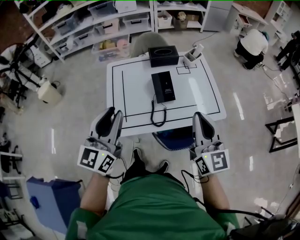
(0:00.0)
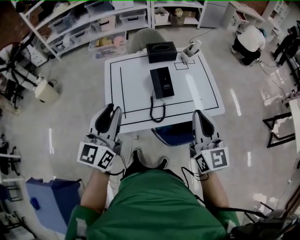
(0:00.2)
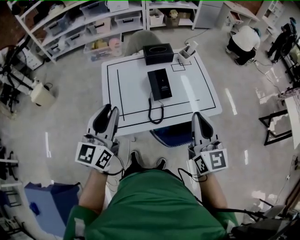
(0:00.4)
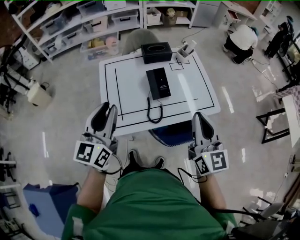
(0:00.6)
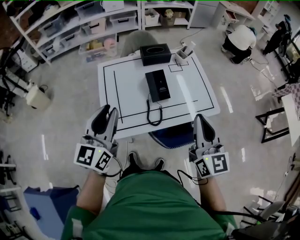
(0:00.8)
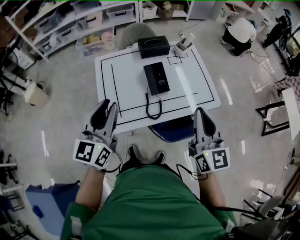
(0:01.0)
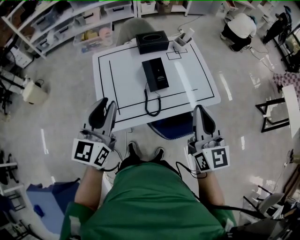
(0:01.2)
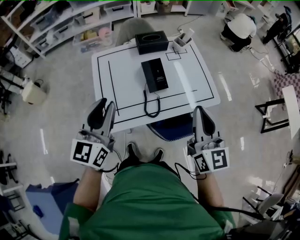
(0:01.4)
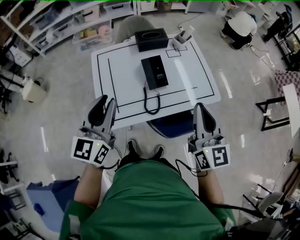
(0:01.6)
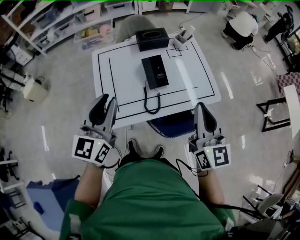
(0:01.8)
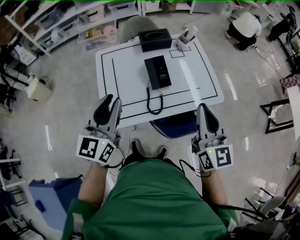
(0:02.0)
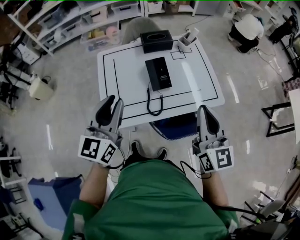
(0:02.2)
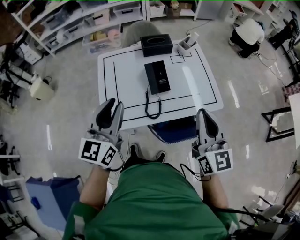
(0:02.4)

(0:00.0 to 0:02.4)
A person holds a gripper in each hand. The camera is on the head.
0:00.0 - 0:01.2: The left gripper shifts by approximately 5 cm.
0:01.2 - 0:02.4: The grippers stay close to where they were, moving slightly.

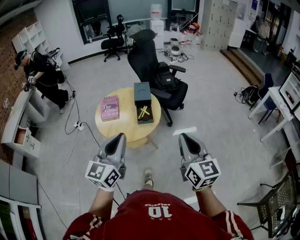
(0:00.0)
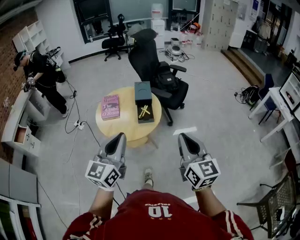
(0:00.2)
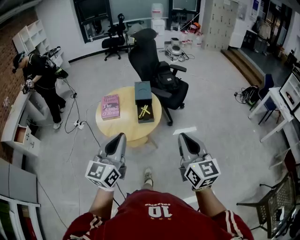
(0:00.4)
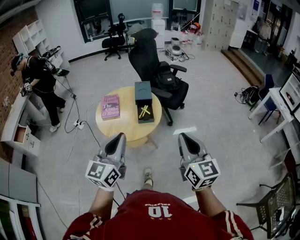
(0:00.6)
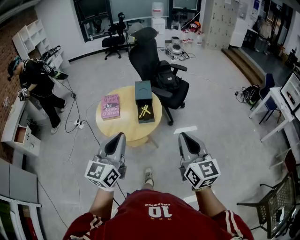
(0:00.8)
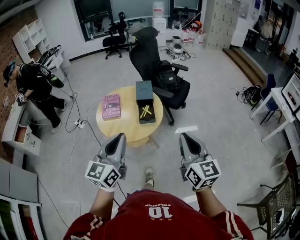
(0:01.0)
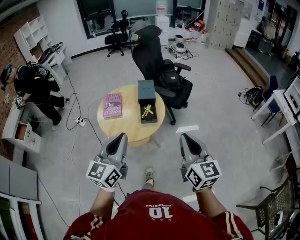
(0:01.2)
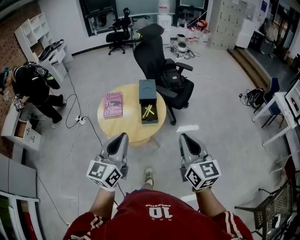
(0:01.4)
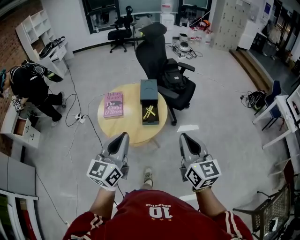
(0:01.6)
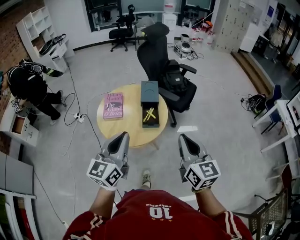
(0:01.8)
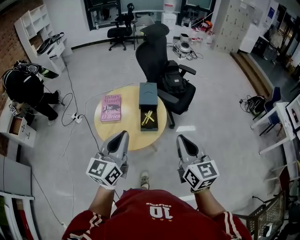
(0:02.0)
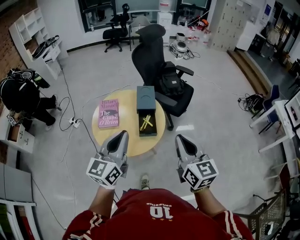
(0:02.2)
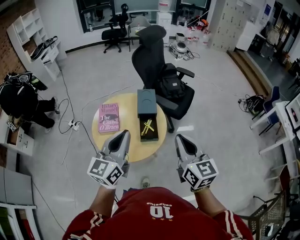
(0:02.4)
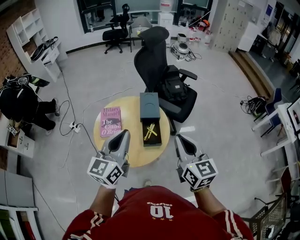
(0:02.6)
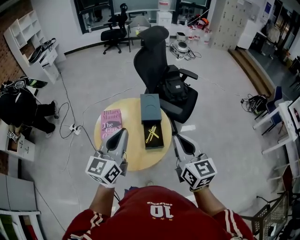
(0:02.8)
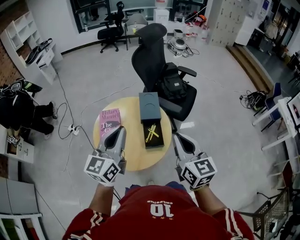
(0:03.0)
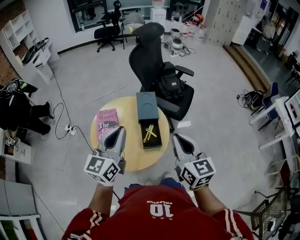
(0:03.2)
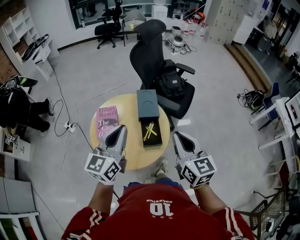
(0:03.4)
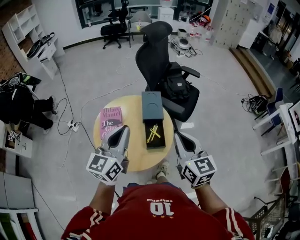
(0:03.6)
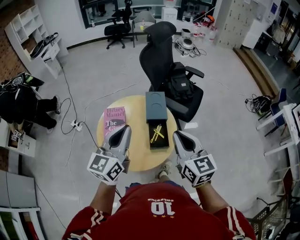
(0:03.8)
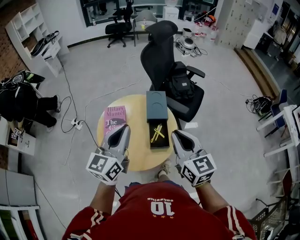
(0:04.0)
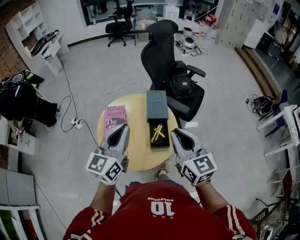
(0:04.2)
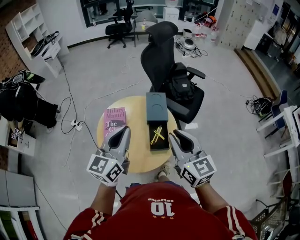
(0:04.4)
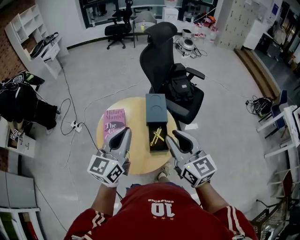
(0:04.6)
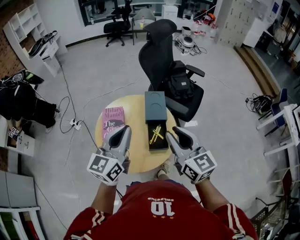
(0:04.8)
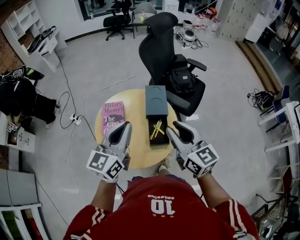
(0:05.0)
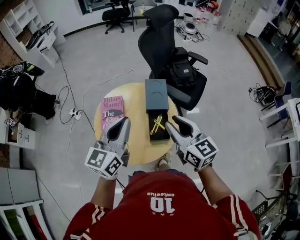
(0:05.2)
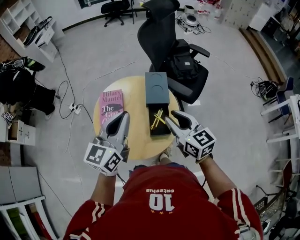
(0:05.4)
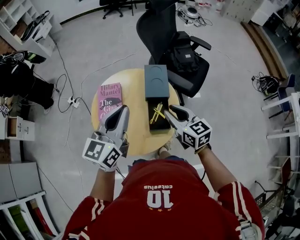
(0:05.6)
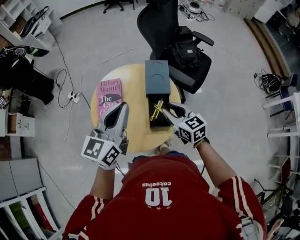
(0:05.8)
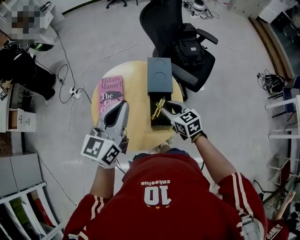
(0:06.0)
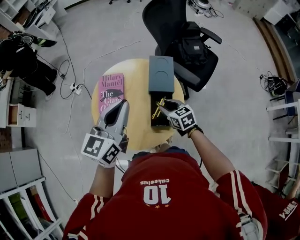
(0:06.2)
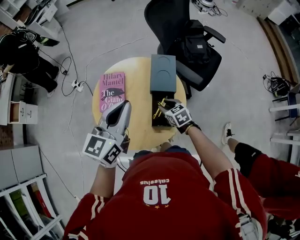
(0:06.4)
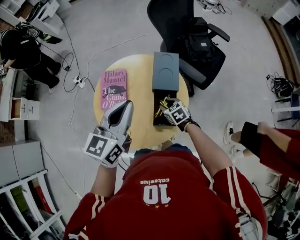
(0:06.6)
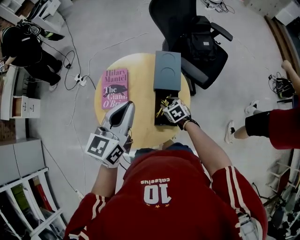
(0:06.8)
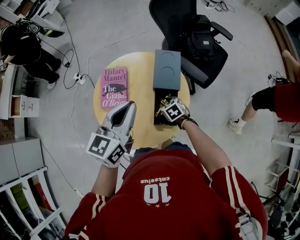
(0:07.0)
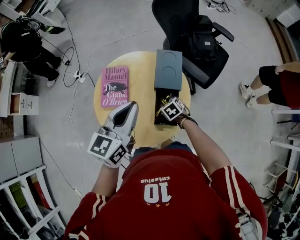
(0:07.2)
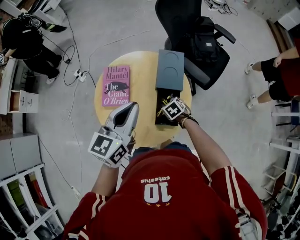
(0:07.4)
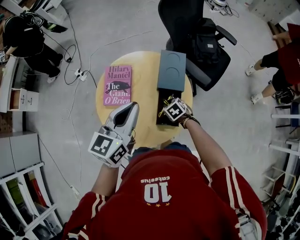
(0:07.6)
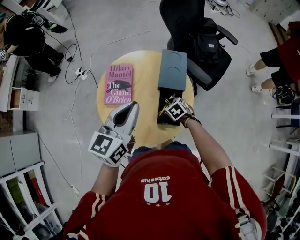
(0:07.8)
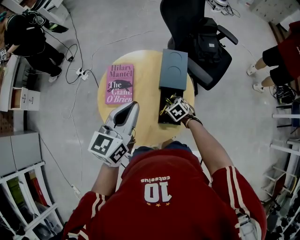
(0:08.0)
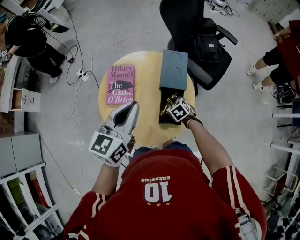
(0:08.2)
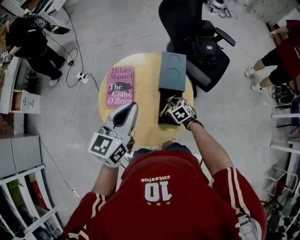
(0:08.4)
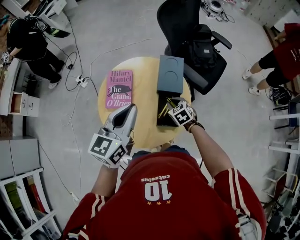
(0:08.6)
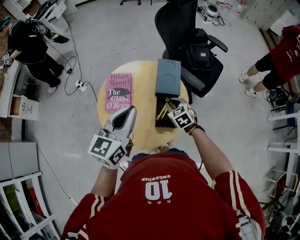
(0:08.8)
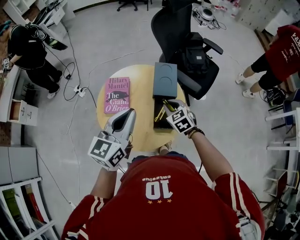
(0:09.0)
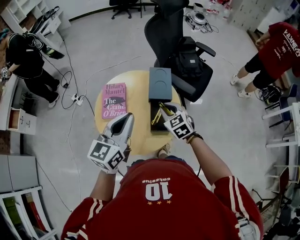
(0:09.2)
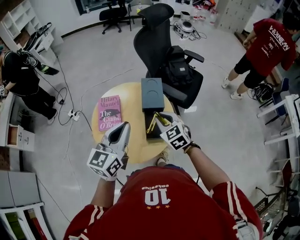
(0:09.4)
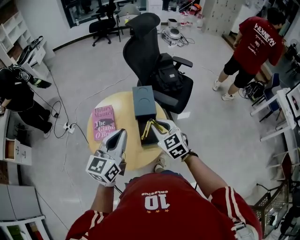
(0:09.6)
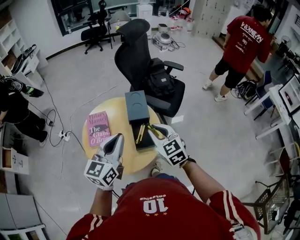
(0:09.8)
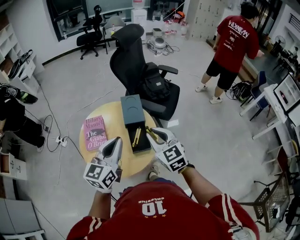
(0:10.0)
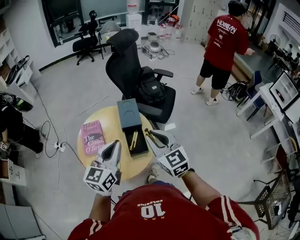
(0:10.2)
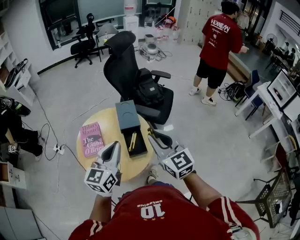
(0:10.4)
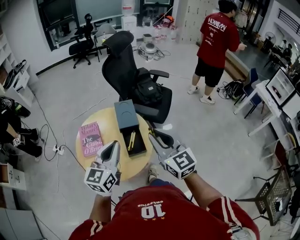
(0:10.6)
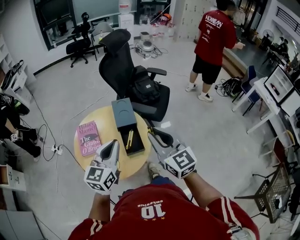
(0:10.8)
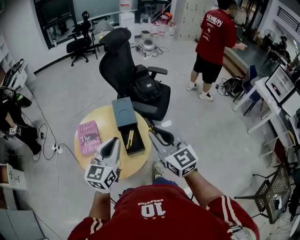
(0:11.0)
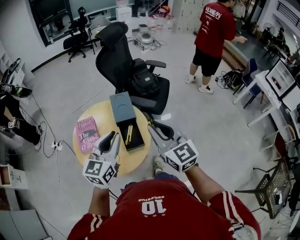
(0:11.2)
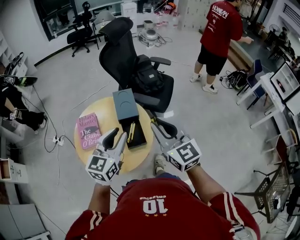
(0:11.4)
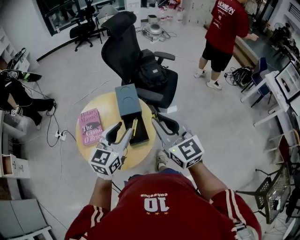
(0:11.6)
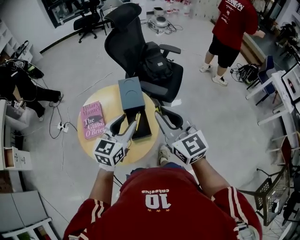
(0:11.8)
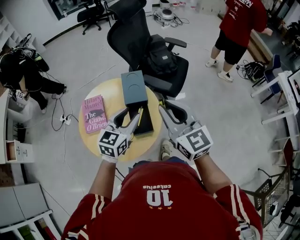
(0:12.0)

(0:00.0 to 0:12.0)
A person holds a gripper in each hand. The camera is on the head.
0:00.0 - 0:01.6: The two grippers go approximately 5 cm forward.
0:01.6 - 0:03.0: The two grippers go approximately 20 cm forward.
0:03.0 - 0:04.4: The right gripper moves some 5 cm.
0:04.4 - 0:06.0: The left gripper travels forward by some 5 cm. The right gripper heads downward and forward, covering approximately 25 cm, and turns by about 30 degrees.
0:06.0 - 0:07.6: The right gripper shifts approximately 20 cm downward, and angles its fingers downward, by roughly 30 degrees, while the left gripper heads downward, covering approximately 5 cm.
0:07.6 - 0:09.0: The left gripper moves approximately 5 cm. Meanwhile the right gripper moves upward, about 15 cm, and changes its angle by approximately 30 degrees.
0:09.0 - 0:10.4: The right gripper travels upward and backward by some 30 cm, and tips its fingers upward by roughly 40 degrees, while the left gripper travels to the right by roughly 5 cm.
0:10.4 - 0:12.0: The left gripper is displaced forward, downward and to the right by about 15 cm, and opens. The right gripper is displaced forward by approximately 5 cm.

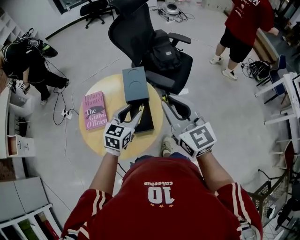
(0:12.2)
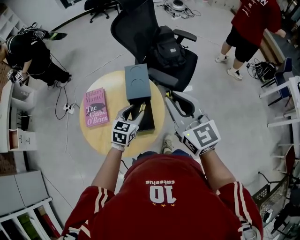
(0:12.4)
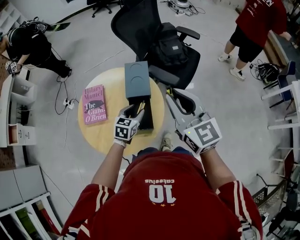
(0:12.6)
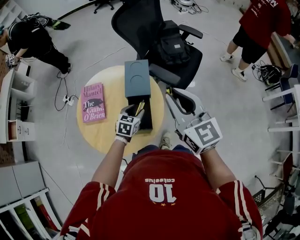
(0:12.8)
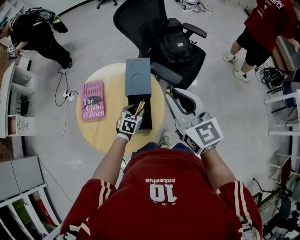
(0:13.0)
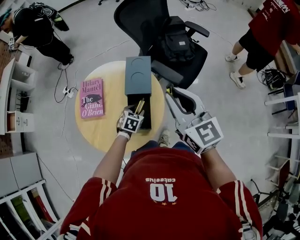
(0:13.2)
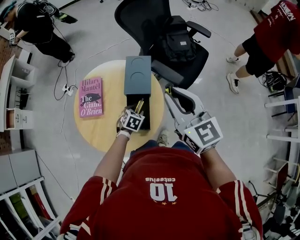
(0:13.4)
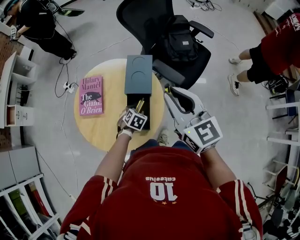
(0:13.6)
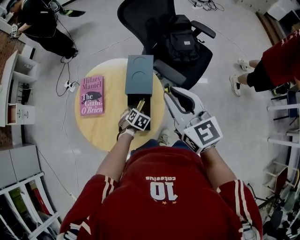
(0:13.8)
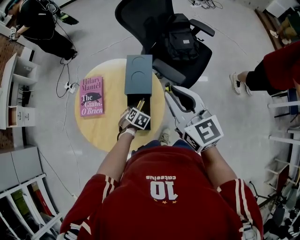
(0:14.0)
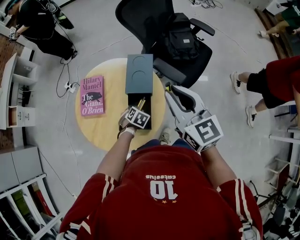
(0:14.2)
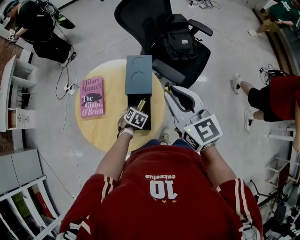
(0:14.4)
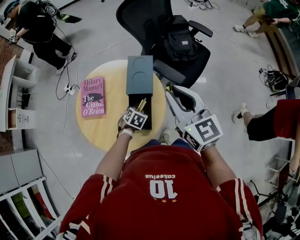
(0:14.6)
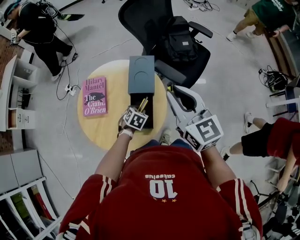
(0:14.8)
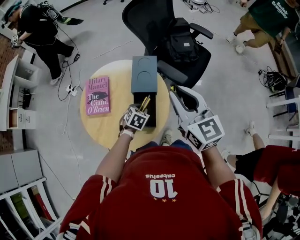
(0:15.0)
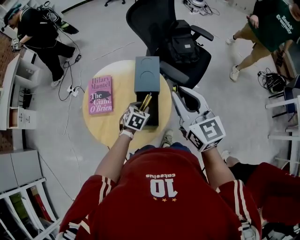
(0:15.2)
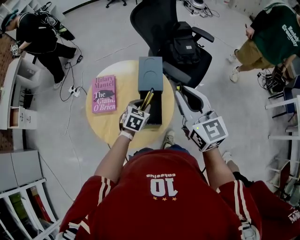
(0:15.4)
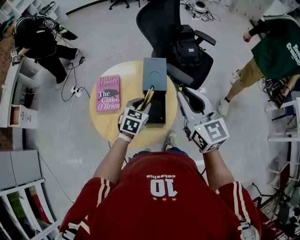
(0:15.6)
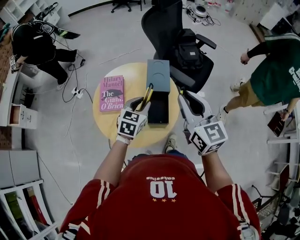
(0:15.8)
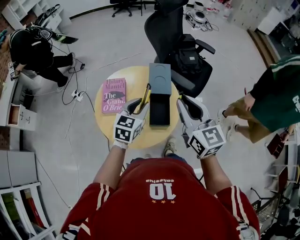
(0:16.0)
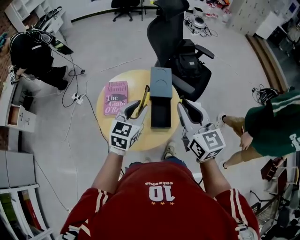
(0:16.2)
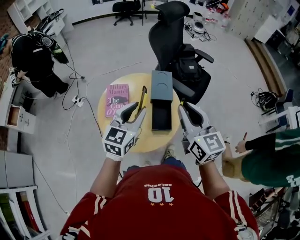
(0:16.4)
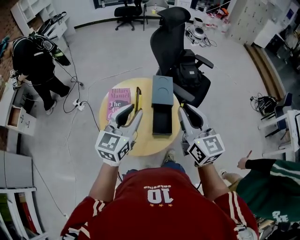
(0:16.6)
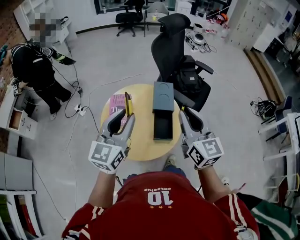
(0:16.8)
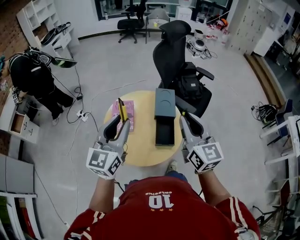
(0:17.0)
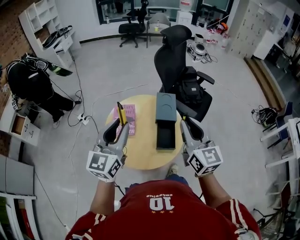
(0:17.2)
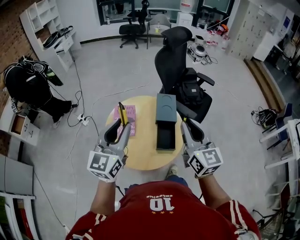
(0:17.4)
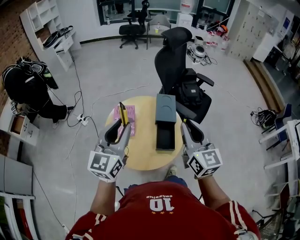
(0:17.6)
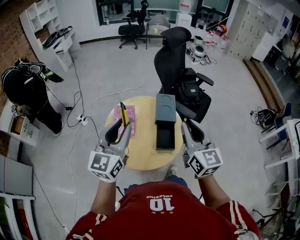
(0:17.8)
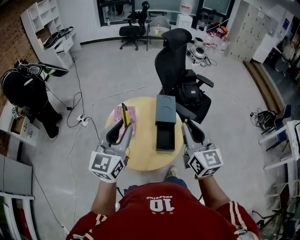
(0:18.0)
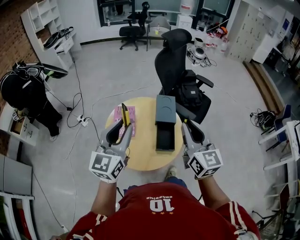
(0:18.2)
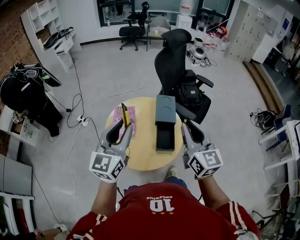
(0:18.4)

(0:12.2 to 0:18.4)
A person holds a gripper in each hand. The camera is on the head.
0:12.2 - 0:13.8: The right gripper moves forward and downward, about 10 cm. The left gripper shifts some 30 cm downward, and points its fingers about 50 degrees further downward.
0:13.8 - 0:15.4: The left gripper goes approximately 15 cm upward, and swivels approximately 30 degrees, while the right gripper changes place by roughly 5 cm.
0:15.4 - 0:16.8: The left gripper goes some 35 cm upward and to the left, and angles its fingers upward, by about 50 degrees; the right gripper shifts approximately 15 cm backward, to the left and upward.
0:16.8 - 0:18.4: The grippers make only small movements.

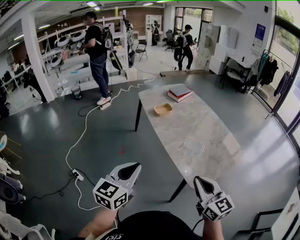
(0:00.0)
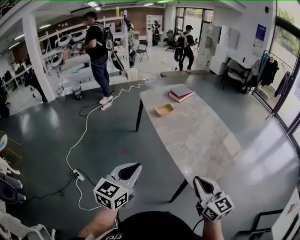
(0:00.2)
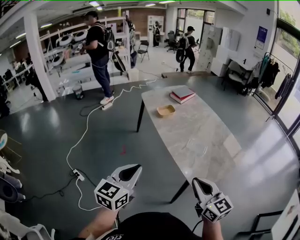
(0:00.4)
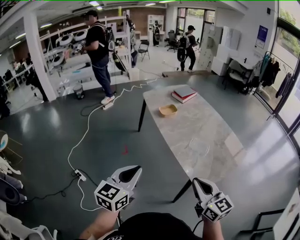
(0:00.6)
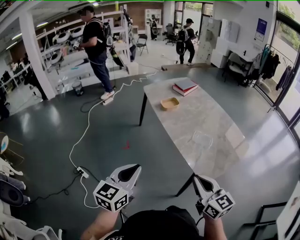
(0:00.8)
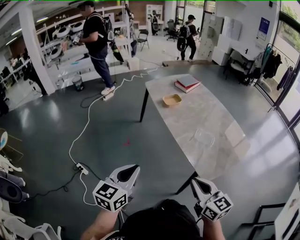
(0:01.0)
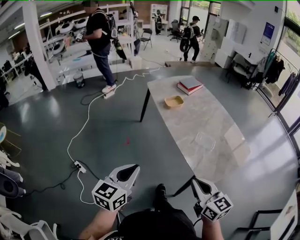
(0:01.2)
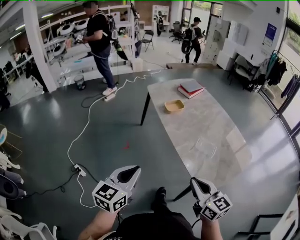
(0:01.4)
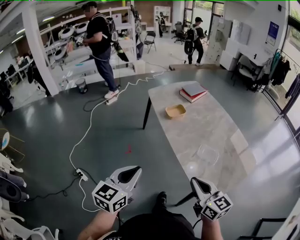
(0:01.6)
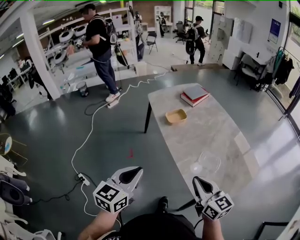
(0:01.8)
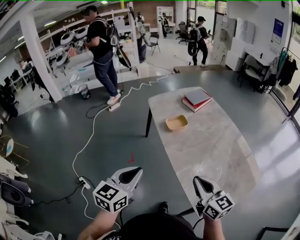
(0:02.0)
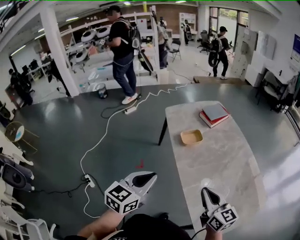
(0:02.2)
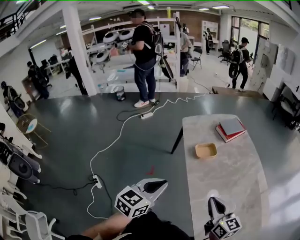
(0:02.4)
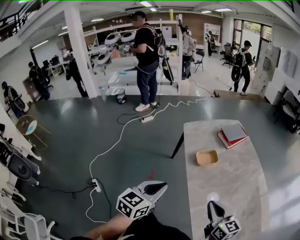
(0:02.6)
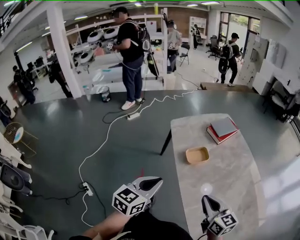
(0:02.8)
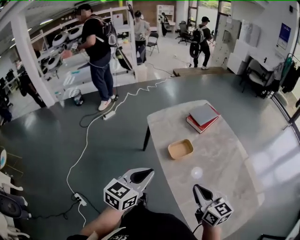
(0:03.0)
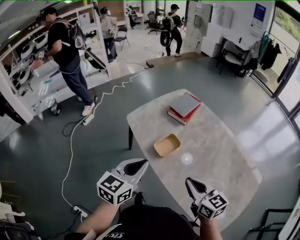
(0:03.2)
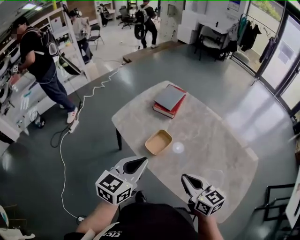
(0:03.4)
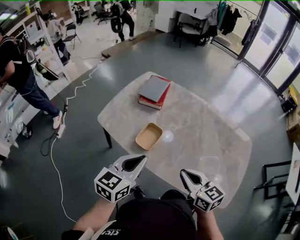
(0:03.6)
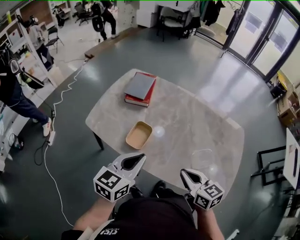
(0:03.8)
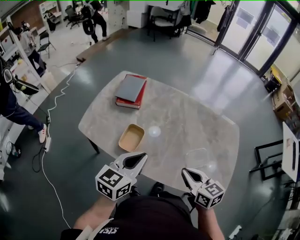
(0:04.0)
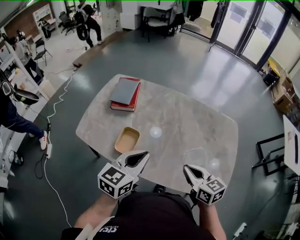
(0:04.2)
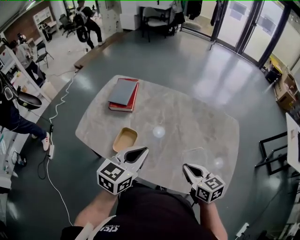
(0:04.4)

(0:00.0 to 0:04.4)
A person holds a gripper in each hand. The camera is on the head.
0:00.0 - 0:01.4: The right gripper moves to the left, forward and downward, approximately 10 cm, while the left gripper travels to the left by approximately 5 cm.
0:01.4 - 0:03.0: The two grippers go some 40 cm forward.
0:03.0 - 0:04.4: The right gripper changes place by about 15 cm, and turns by some 40 degrees, while the left gripper moves some 20 cm, and swivels about 50 degrees.
